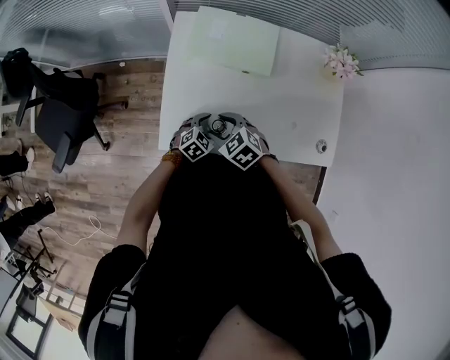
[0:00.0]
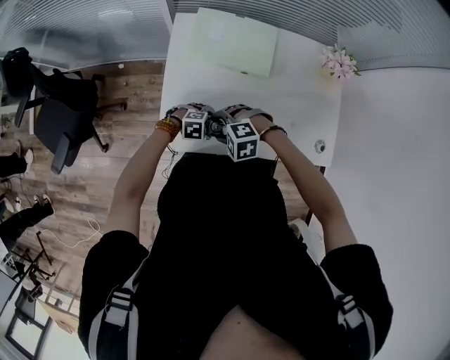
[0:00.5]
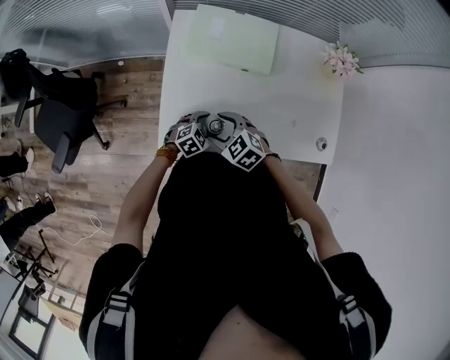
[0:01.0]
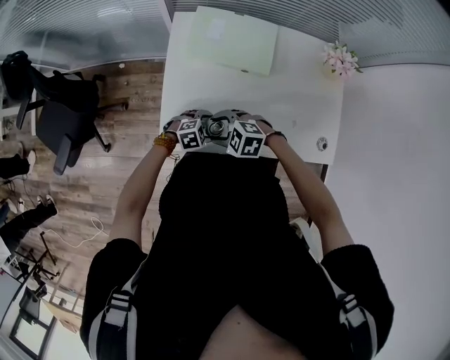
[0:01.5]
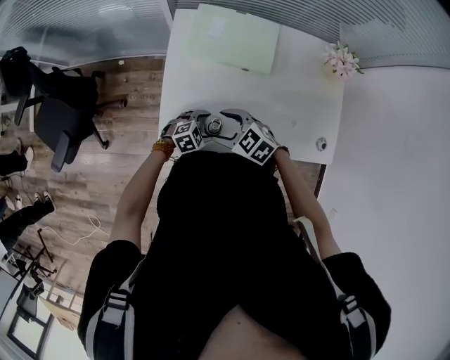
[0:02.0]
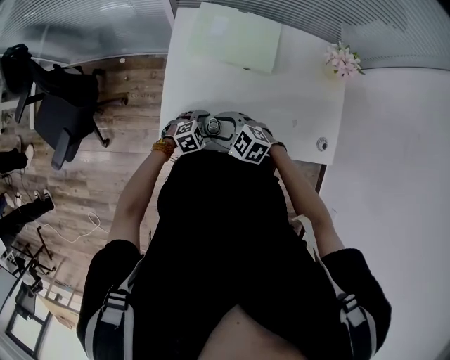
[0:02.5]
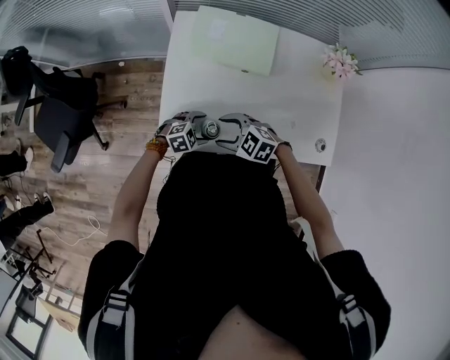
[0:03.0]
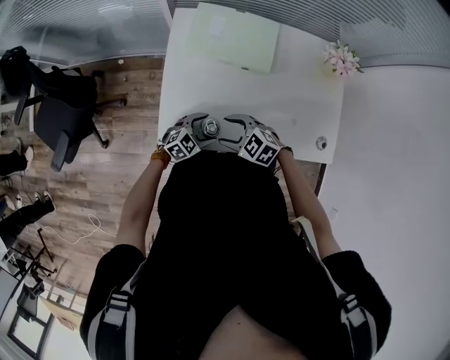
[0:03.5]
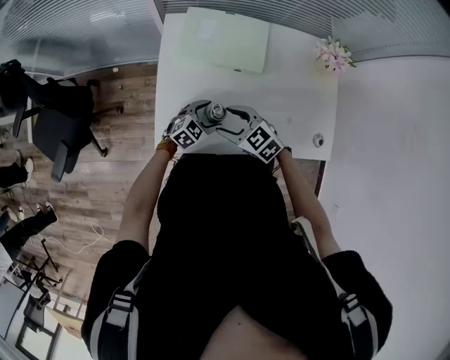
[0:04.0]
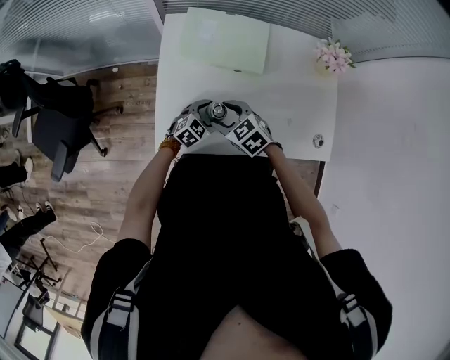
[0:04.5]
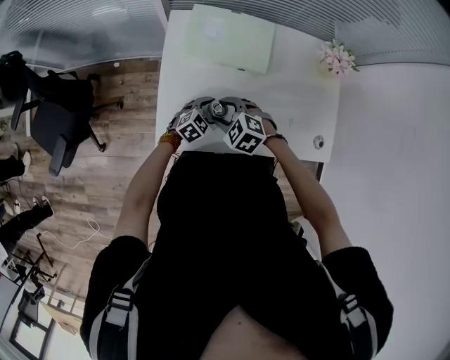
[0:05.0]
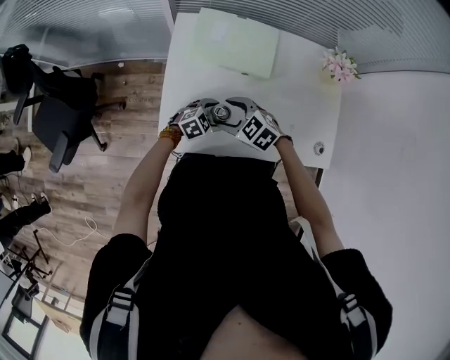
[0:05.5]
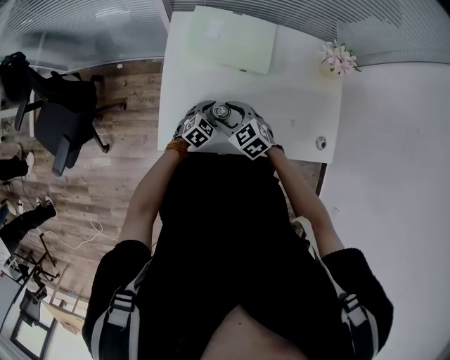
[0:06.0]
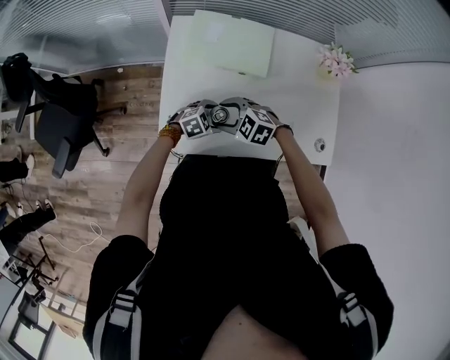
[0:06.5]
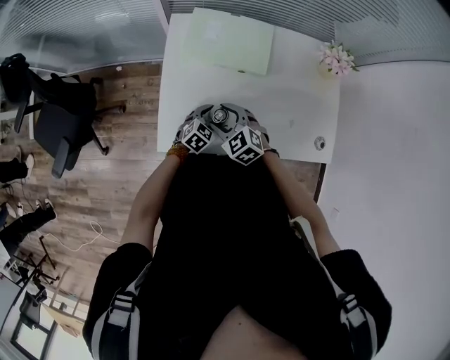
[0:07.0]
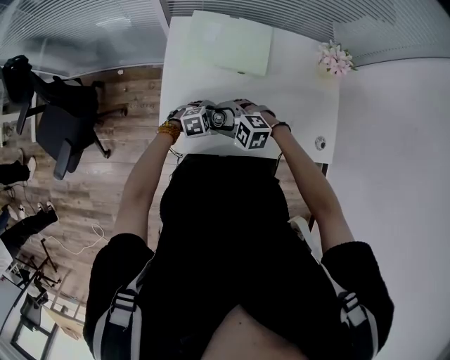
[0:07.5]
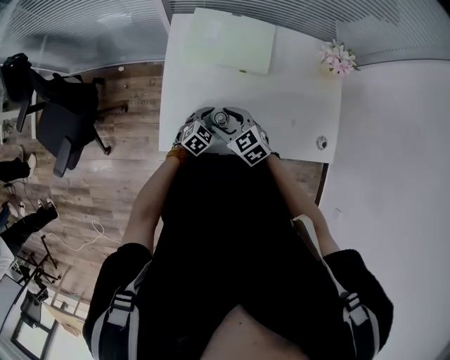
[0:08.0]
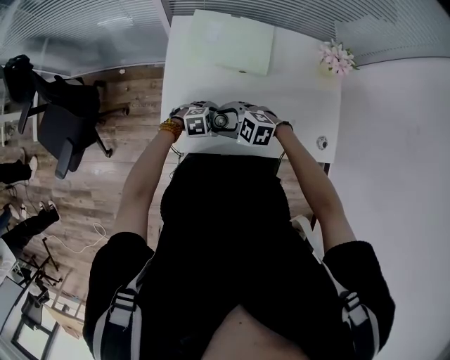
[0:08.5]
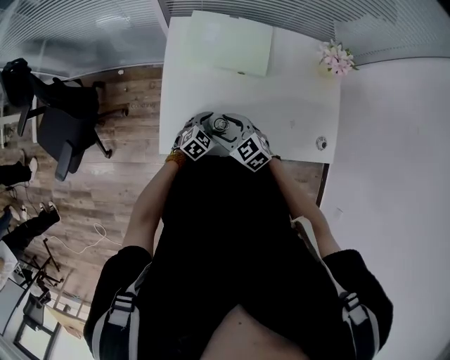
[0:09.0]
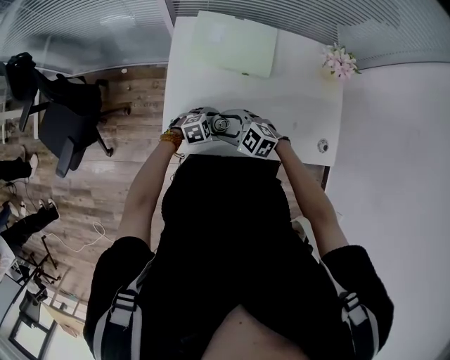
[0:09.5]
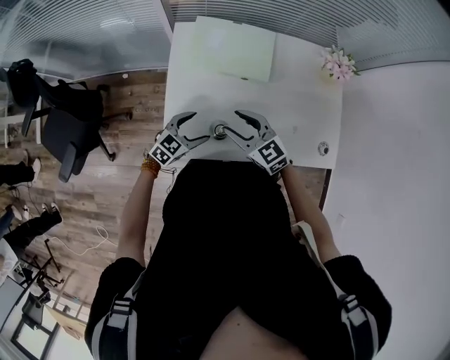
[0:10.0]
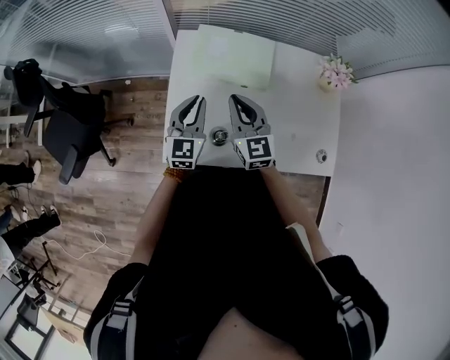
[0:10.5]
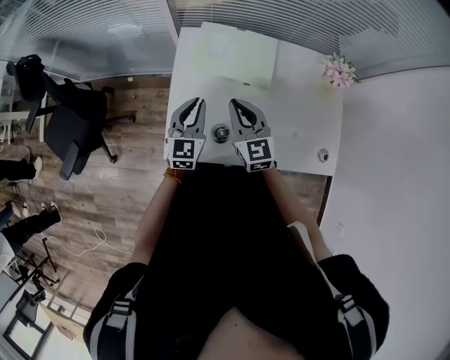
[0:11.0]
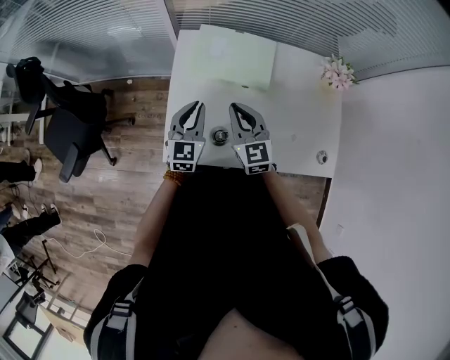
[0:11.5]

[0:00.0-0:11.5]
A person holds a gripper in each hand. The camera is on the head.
0:02.0 to 0:04.0: The left gripper changes place by about 5 cm.
0:06.0 to 0:07.5: The right gripper changes its angle by roughly 40 degrees; the left gripper turns by approximately 30 degrees.
0:09.5 to 0:11.5: The left gripper shifts roughly 20 cm upward, tilts its fingers about 40 degrees upward, and closes up. The right gripper shifts roughly 10 cm upward, changes its angle by approximately 60 degrees, and closes its fingers.

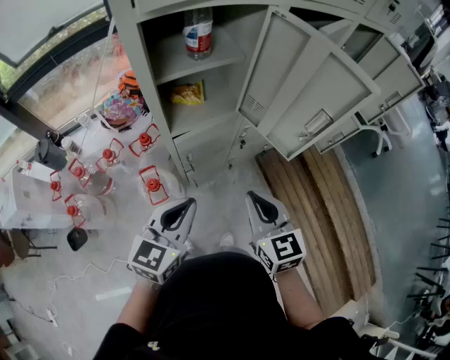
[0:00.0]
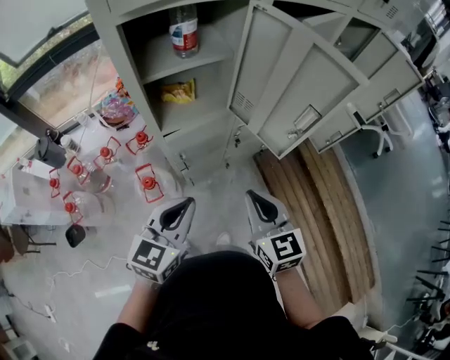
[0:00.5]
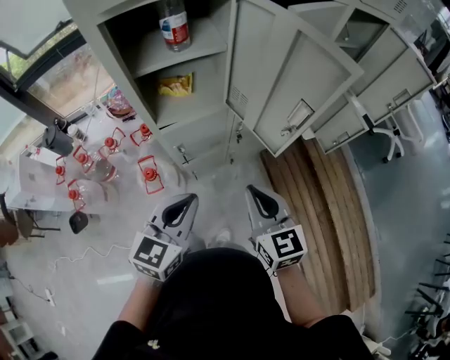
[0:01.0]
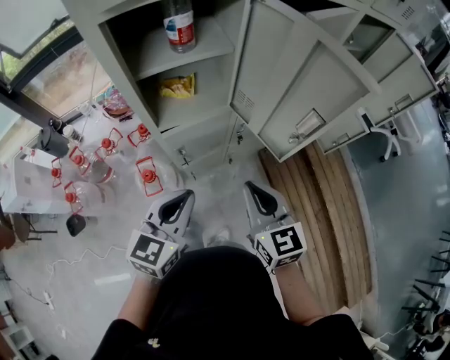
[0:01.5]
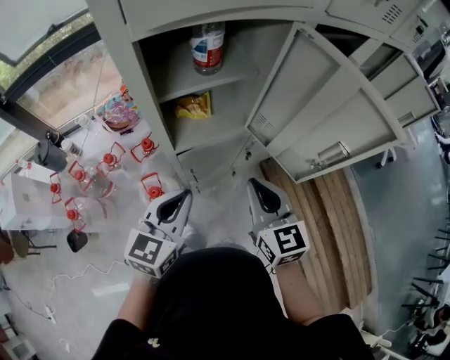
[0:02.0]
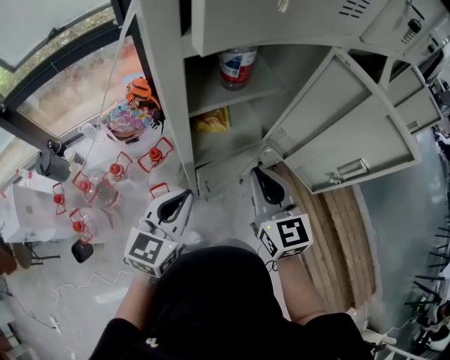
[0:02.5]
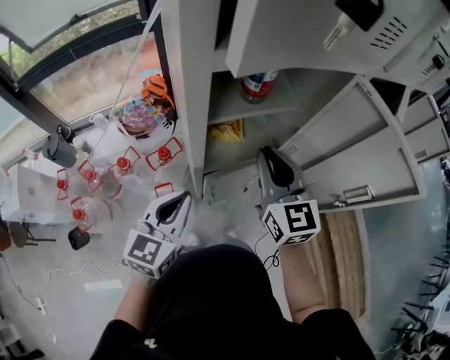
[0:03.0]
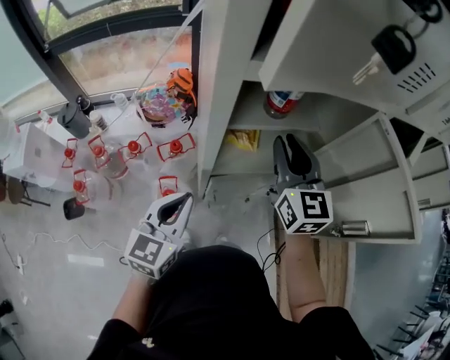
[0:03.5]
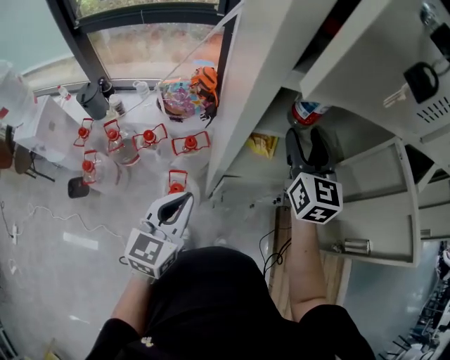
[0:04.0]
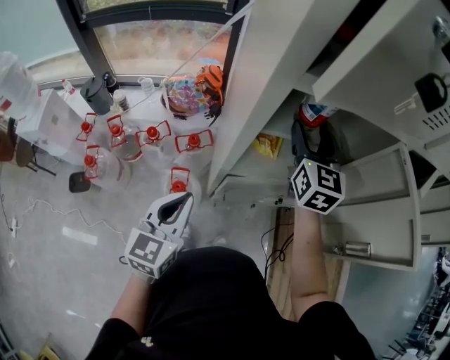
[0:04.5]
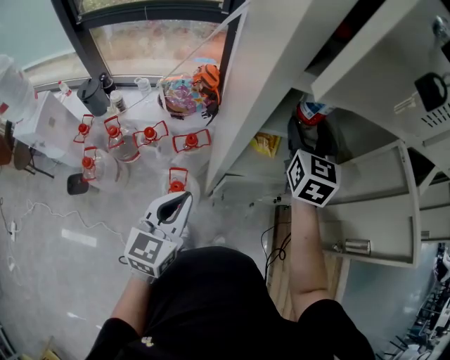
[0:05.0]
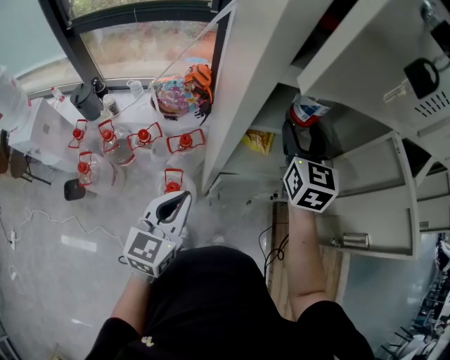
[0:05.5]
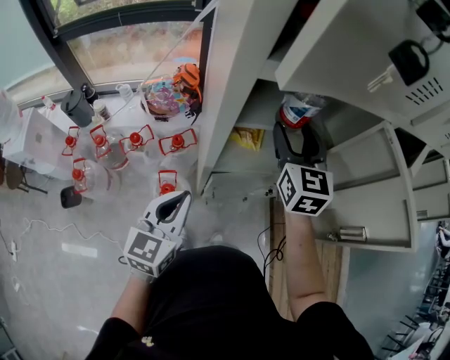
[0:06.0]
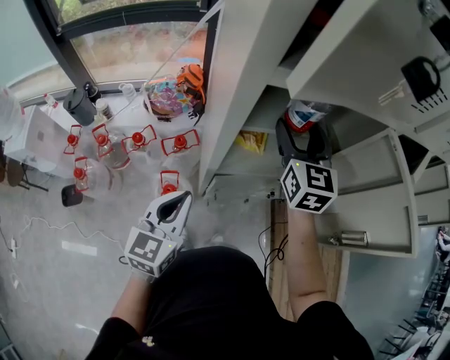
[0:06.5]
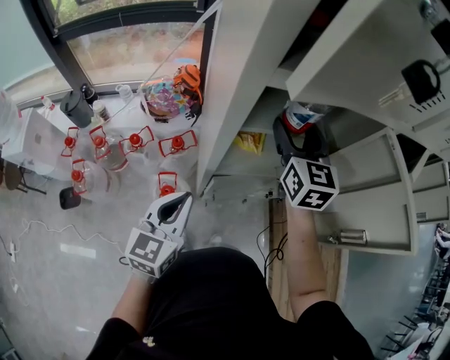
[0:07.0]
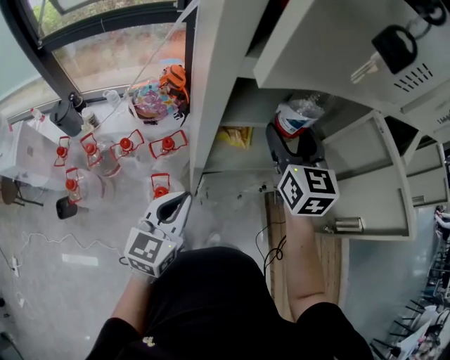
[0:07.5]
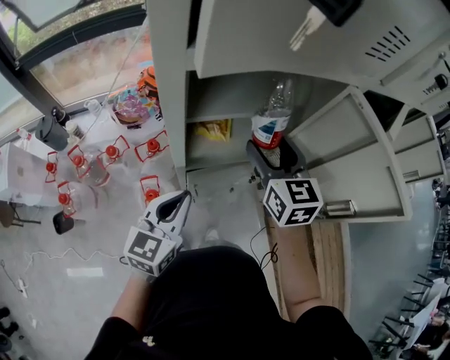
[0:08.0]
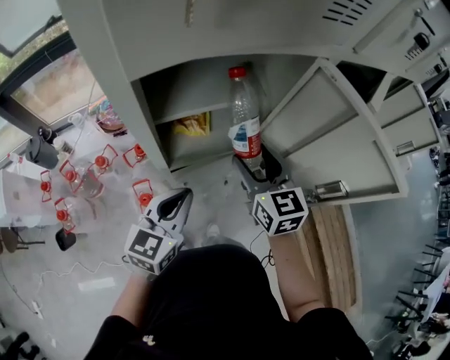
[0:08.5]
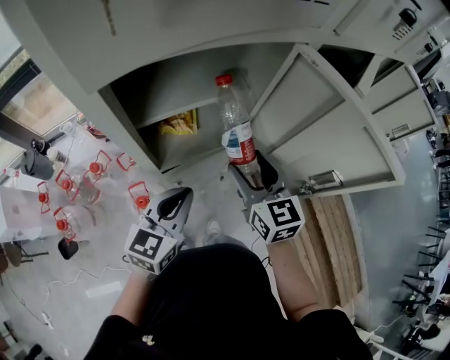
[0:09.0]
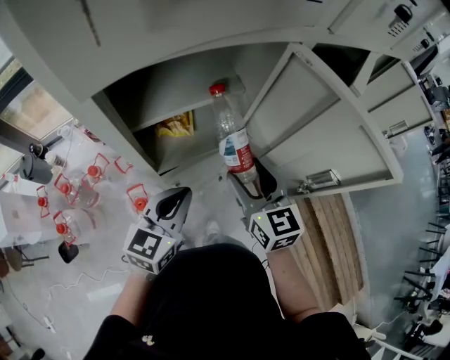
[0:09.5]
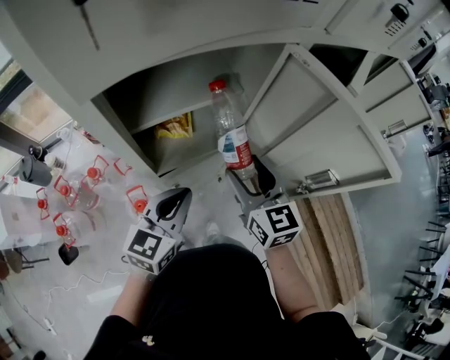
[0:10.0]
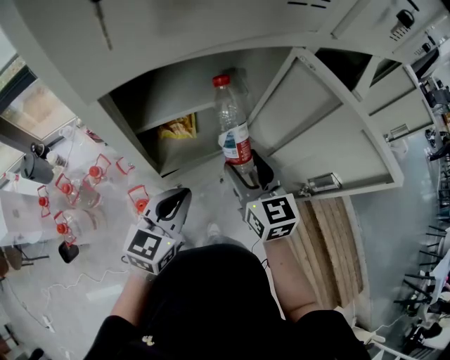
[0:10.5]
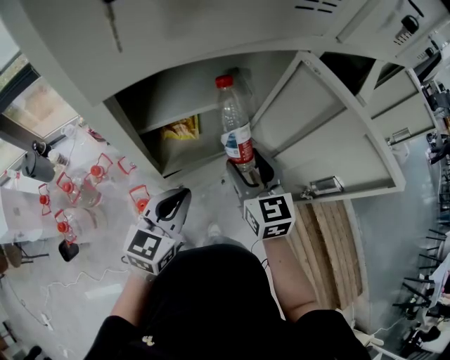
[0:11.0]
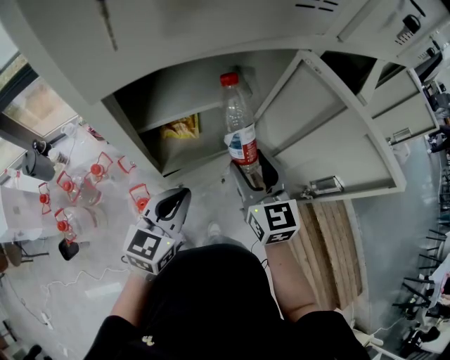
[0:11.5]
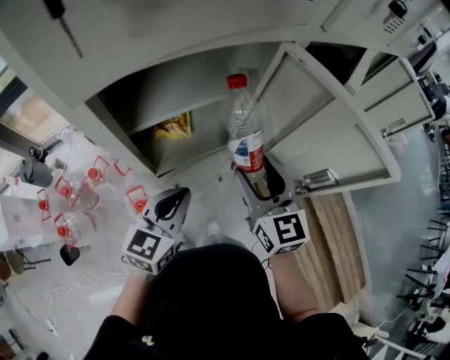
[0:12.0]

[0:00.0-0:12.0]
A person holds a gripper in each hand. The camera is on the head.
0:00.0 to 0:02.0: Both grippers travel together forward, roughly 10 cm. The left gripper reaches some 10 cm to the right, then returns.
0:02.0 to 0:04.0: The right gripper shifts approximately 25 cm forward, to the left and upward, and opens up. The left gripper shifts roughly 10 cm to the left, and changes its angle by some 20 degrees.
0:04.0 to 0:06.0: There are only small adjustments of the grippers.
0:06.0 to 0:08.0: The left gripper heads to the right, covering about 5 cm; the right gripper travels backward by approximately 5 cm.
0:08.0 to 0:10.0: The left gripper moves to the right, some 5 cm; the right gripper is displaced backward and to the right by approximately 10 cm.
0:10.0 to 0:12.0: The grippers make only small movements.

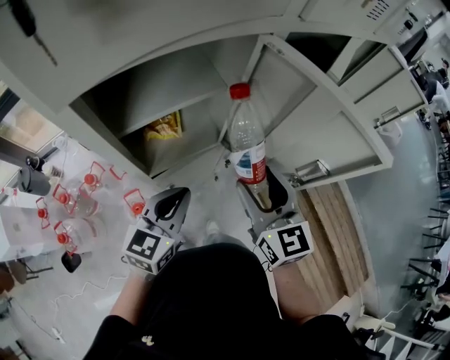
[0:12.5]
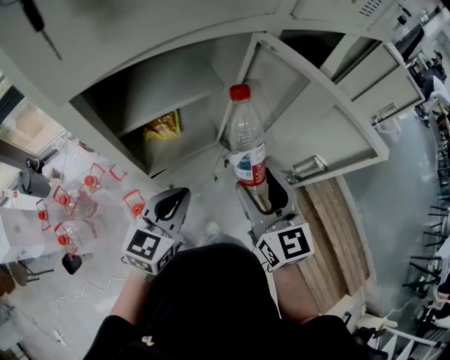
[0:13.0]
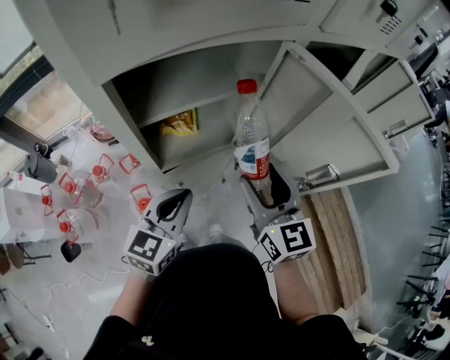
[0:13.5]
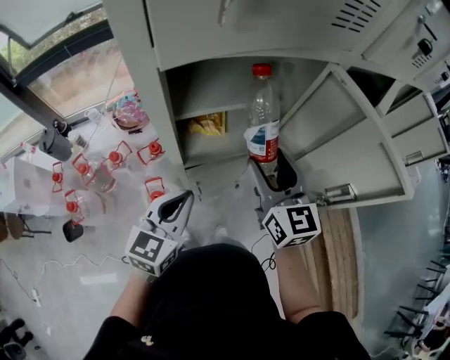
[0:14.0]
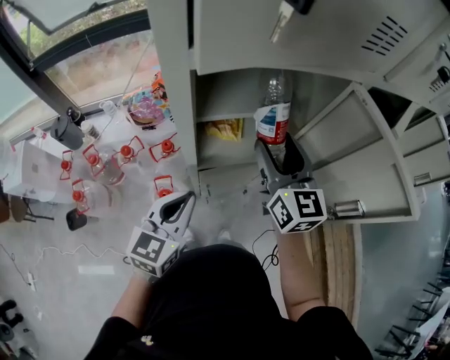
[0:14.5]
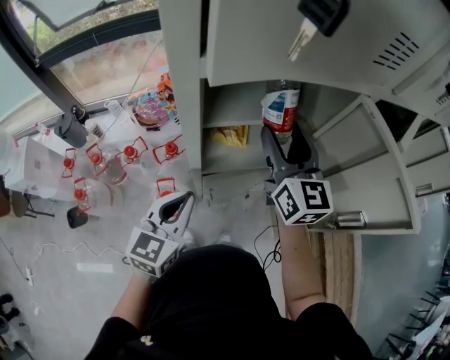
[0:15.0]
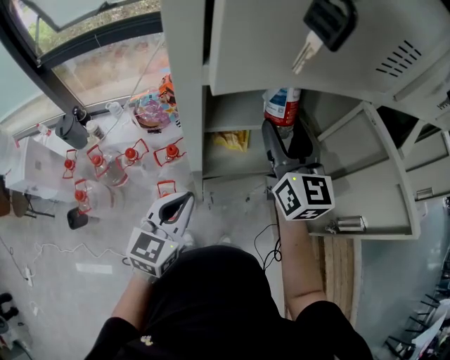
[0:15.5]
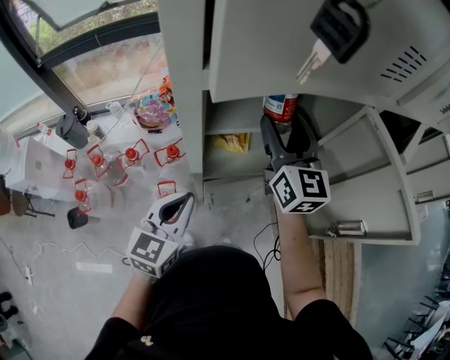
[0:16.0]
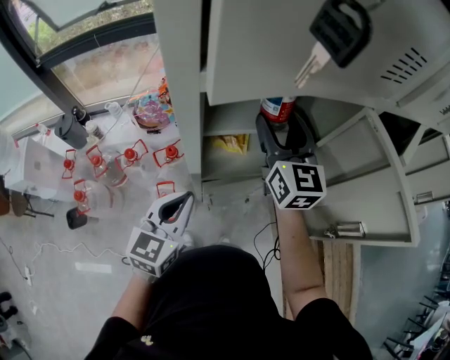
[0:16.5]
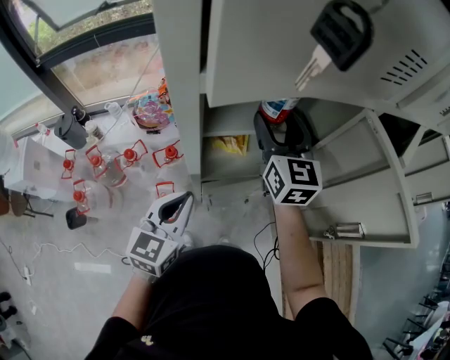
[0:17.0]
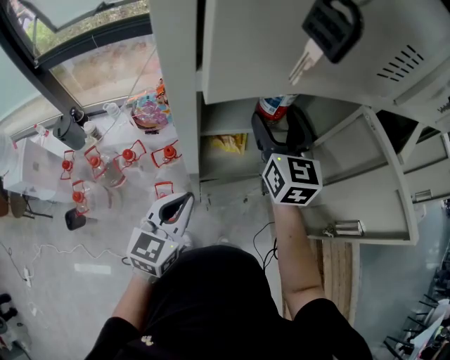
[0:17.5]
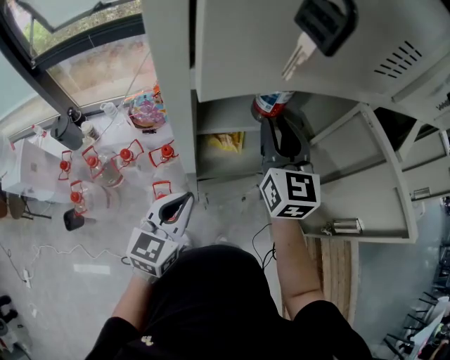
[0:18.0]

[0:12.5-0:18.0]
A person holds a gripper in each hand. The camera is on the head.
0:12.5 to 0:14.5: The right gripper shifts some 15 cm to the left and forward. Meanwhile the left gripper shifts roughly 10 cm to the left.
0:14.5 to 0:16.0: The right gripper is displaced forward by about 5 cm.
0:16.0 to 0:18.0: The right gripper closes its fingers.
